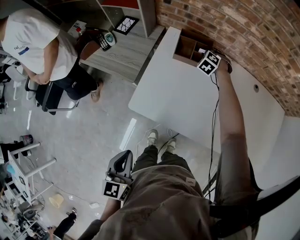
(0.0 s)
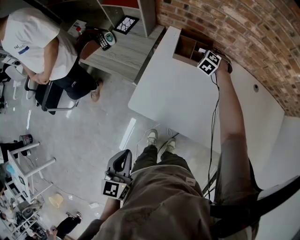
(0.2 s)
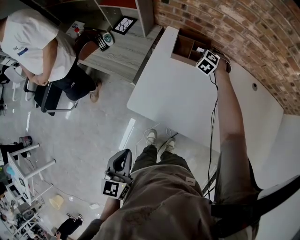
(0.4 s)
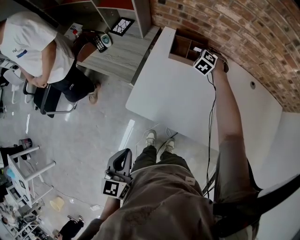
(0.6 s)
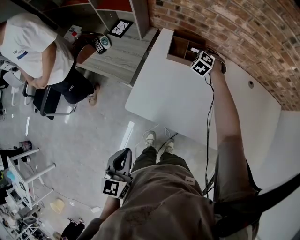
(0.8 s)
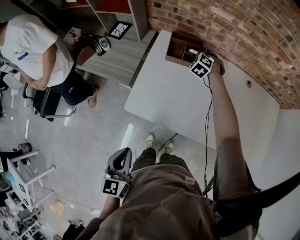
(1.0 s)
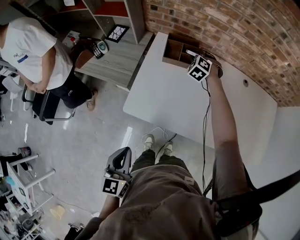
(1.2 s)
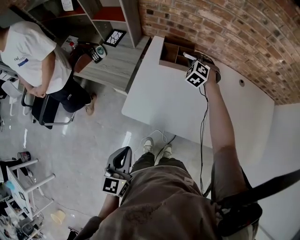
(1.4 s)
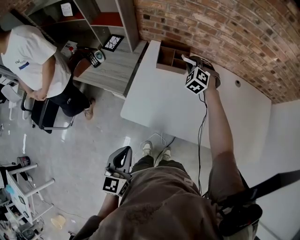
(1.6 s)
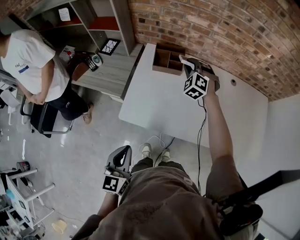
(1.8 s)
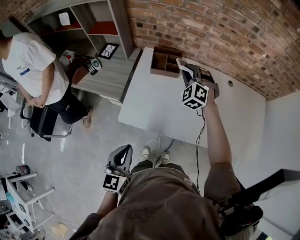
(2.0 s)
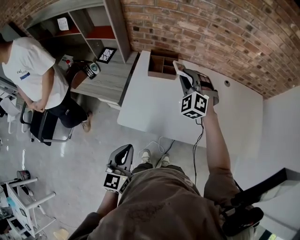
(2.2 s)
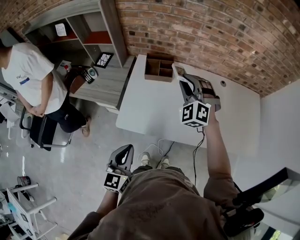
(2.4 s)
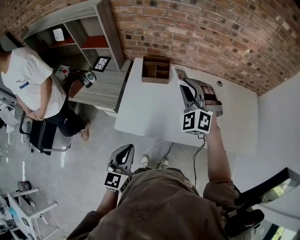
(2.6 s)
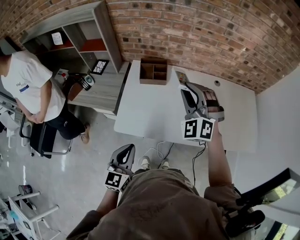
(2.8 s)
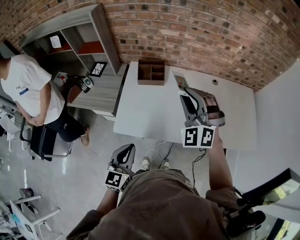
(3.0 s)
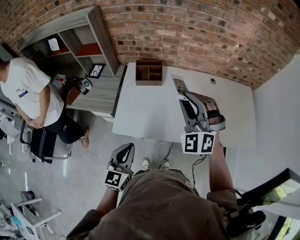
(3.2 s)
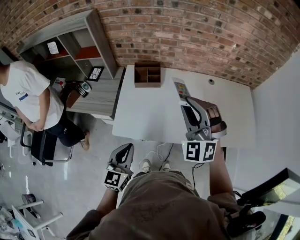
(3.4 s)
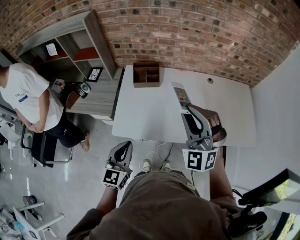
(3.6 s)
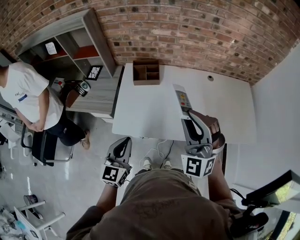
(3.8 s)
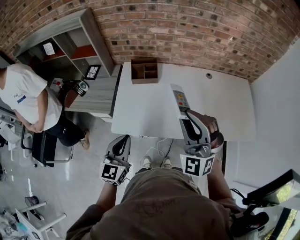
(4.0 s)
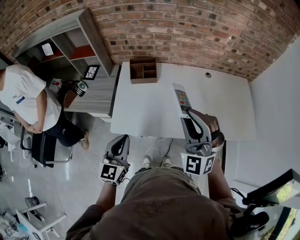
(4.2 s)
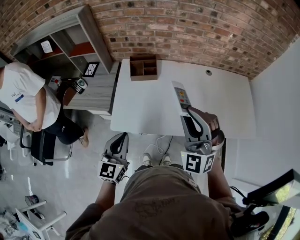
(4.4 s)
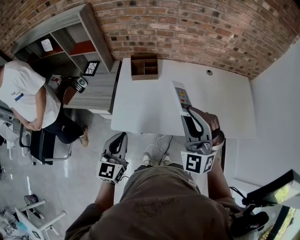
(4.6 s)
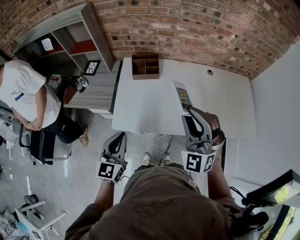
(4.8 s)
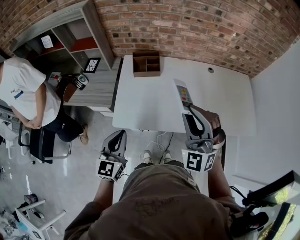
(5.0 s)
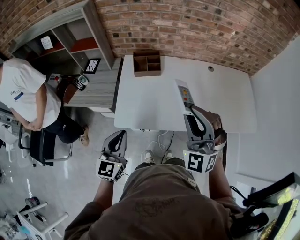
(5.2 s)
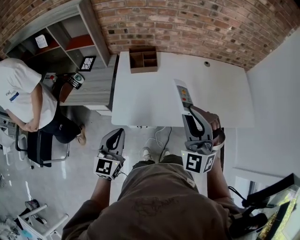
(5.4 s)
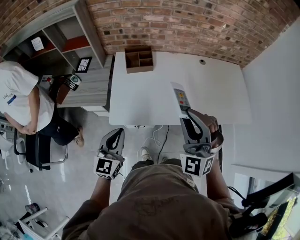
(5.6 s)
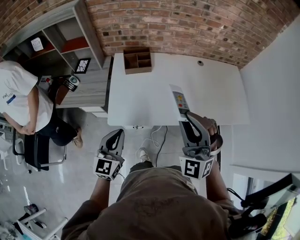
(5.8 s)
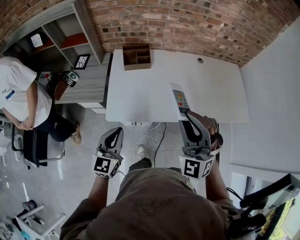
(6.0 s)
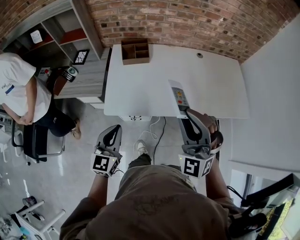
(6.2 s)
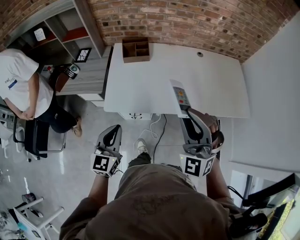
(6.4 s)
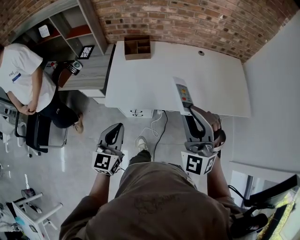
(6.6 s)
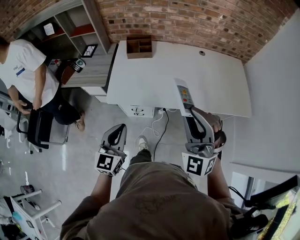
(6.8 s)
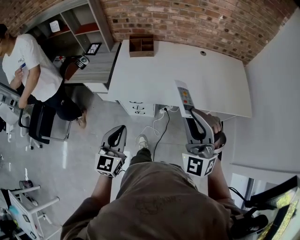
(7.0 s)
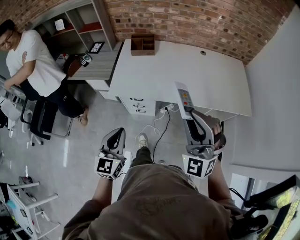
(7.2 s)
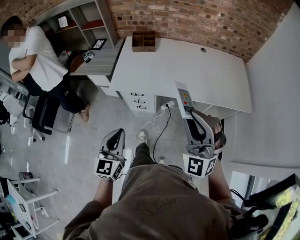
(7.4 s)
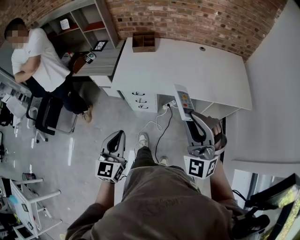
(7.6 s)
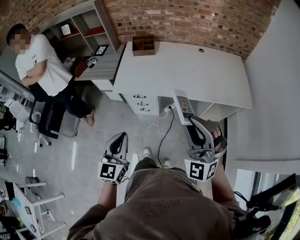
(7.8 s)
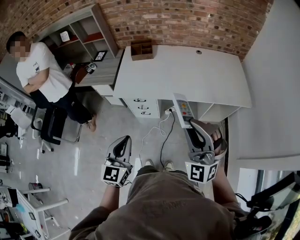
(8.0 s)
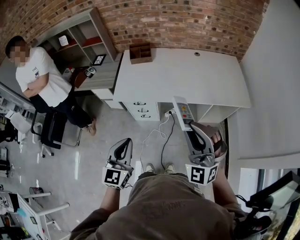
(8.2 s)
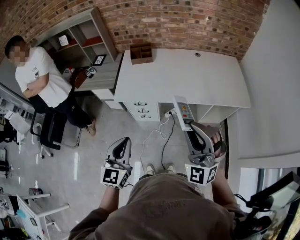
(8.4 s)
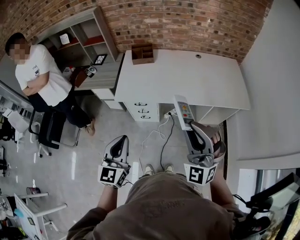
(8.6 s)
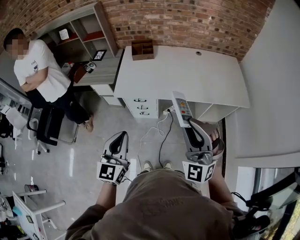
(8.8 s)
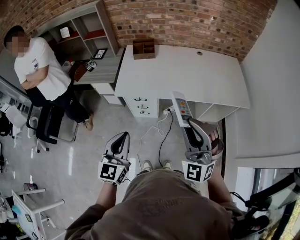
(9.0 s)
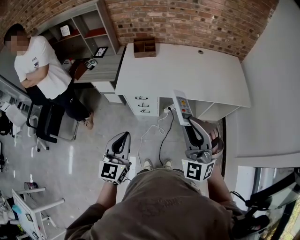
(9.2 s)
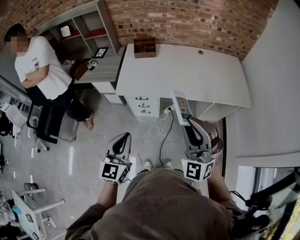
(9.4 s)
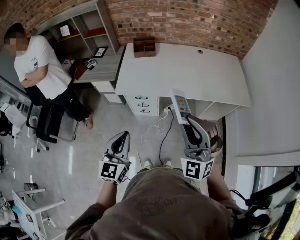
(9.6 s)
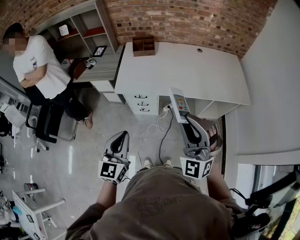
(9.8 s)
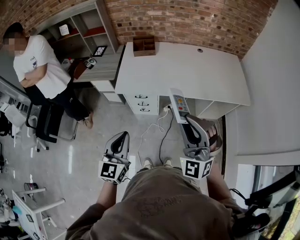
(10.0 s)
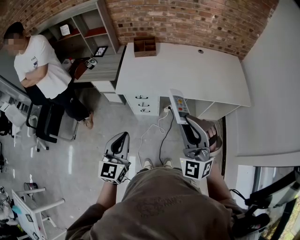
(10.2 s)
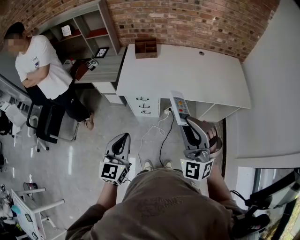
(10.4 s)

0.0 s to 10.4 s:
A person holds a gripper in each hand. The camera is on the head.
0.0 to 1.4 s: The right gripper is displaced upward and backward by about 10 cm.
1.4 to 3.0 s: The right gripper moves backward and upward, about 40 cm, and tips its fingers upward by approximately 30 degrees, while the left gripper moves to the right, approximately 5 cm, and rotates roughly 20 degrees.
3.0 to 4.4 s: The right gripper is displaced backward by some 10 cm.
4.4 to 6.0 s: The right gripper heads backward, covering roughly 10 cm. Meanwhile the left gripper shifts by some 5 cm.
6.0 to 7.4 s: The right gripper shifts about 25 cm backward and to the right, while the left gripper moves backward, about 25 cm.
7.4 to 9.0 s: The right gripper heads backward, covering about 5 cm. Meanwhile the left gripper shifts about 5 cm upward.
9.0 to 10.4 s: The grippers move only a little.

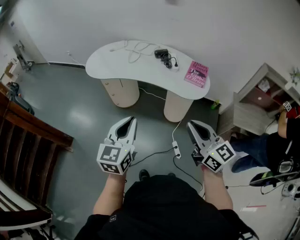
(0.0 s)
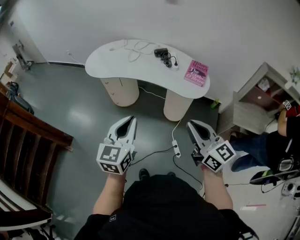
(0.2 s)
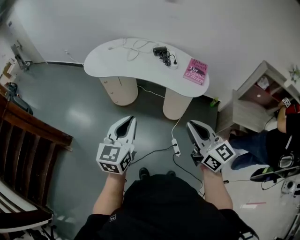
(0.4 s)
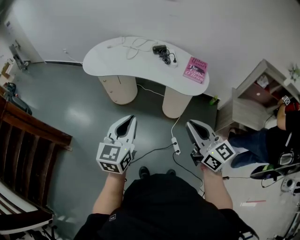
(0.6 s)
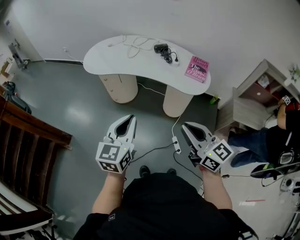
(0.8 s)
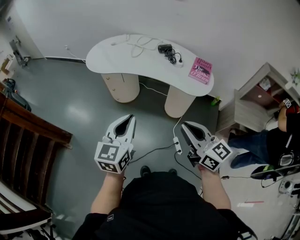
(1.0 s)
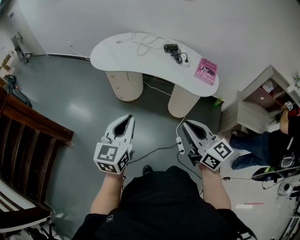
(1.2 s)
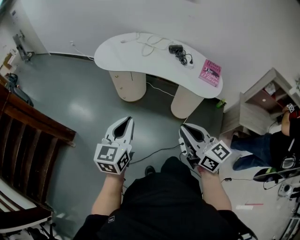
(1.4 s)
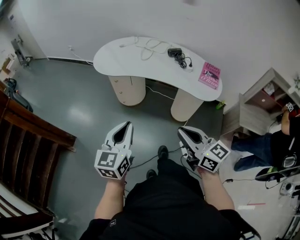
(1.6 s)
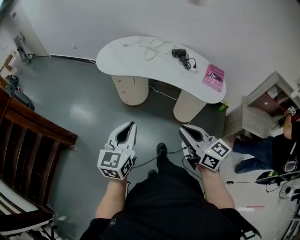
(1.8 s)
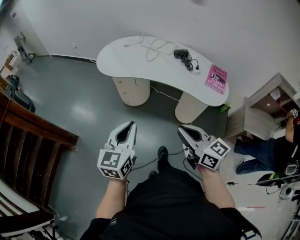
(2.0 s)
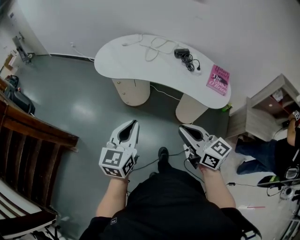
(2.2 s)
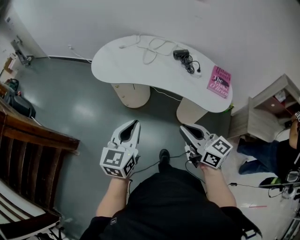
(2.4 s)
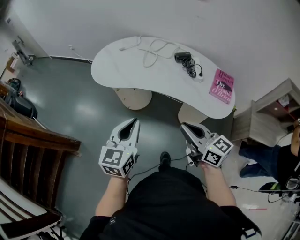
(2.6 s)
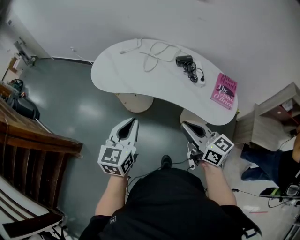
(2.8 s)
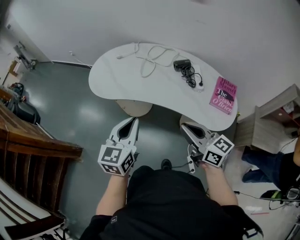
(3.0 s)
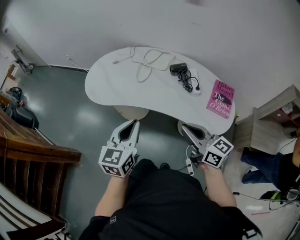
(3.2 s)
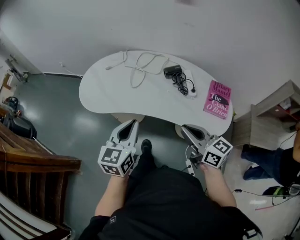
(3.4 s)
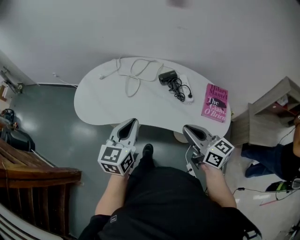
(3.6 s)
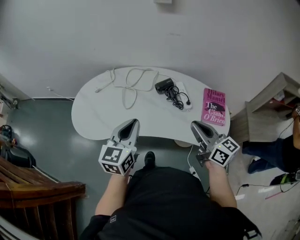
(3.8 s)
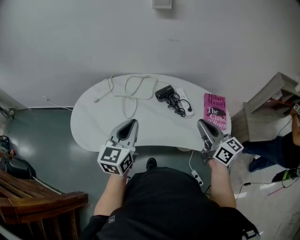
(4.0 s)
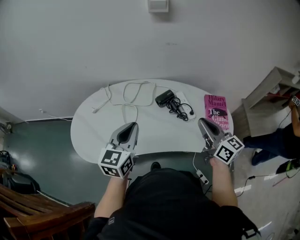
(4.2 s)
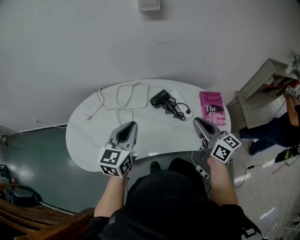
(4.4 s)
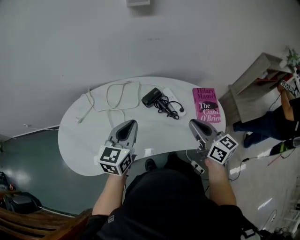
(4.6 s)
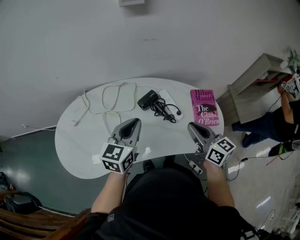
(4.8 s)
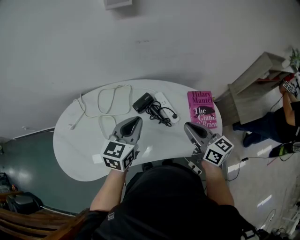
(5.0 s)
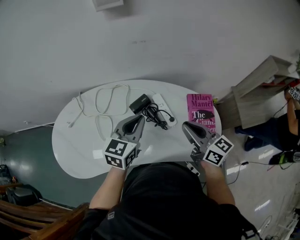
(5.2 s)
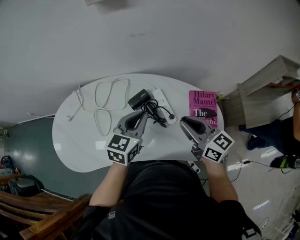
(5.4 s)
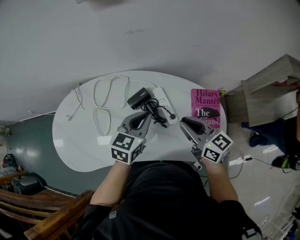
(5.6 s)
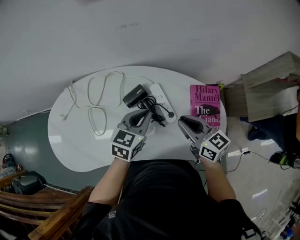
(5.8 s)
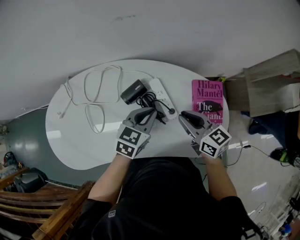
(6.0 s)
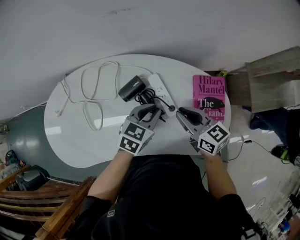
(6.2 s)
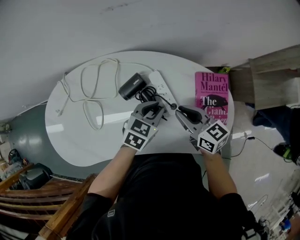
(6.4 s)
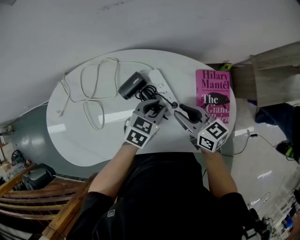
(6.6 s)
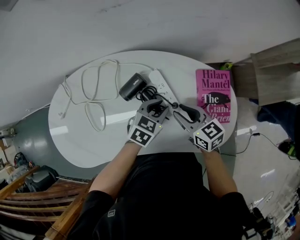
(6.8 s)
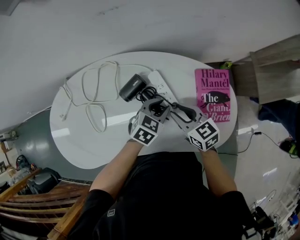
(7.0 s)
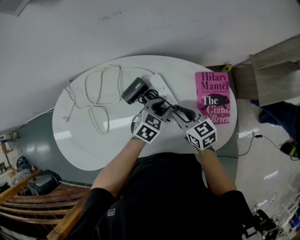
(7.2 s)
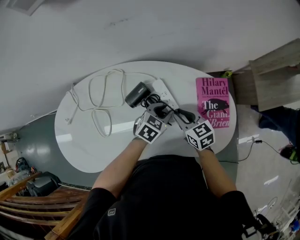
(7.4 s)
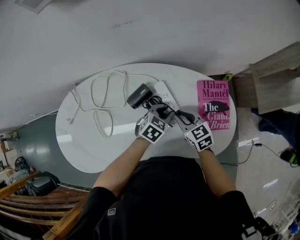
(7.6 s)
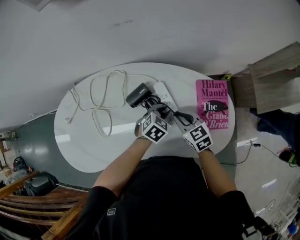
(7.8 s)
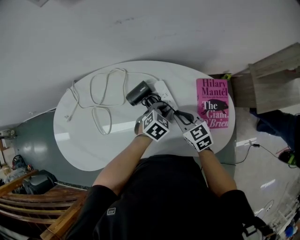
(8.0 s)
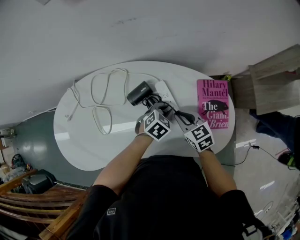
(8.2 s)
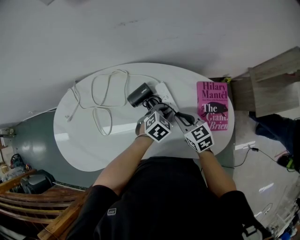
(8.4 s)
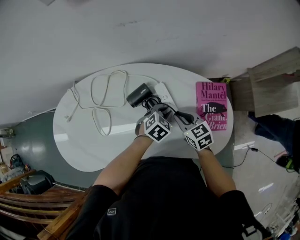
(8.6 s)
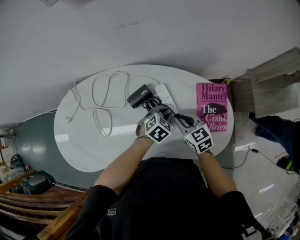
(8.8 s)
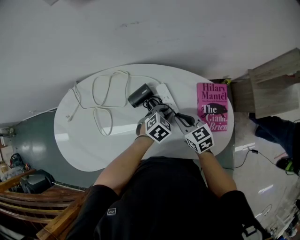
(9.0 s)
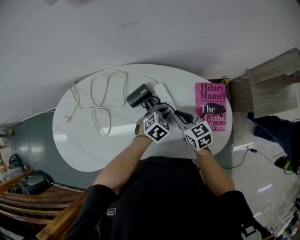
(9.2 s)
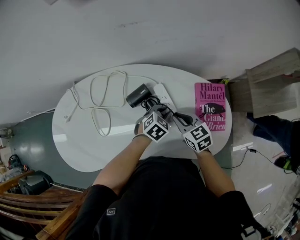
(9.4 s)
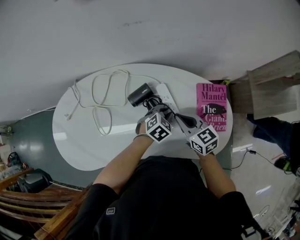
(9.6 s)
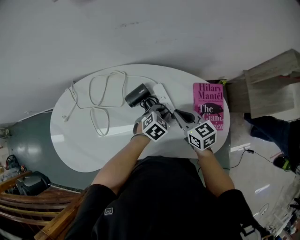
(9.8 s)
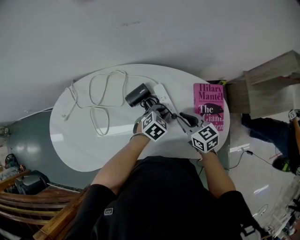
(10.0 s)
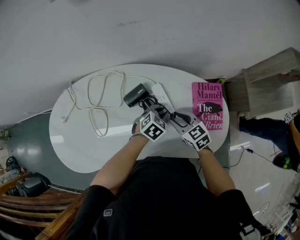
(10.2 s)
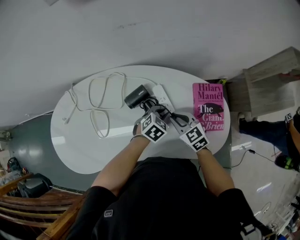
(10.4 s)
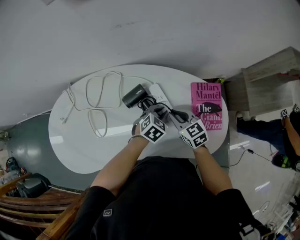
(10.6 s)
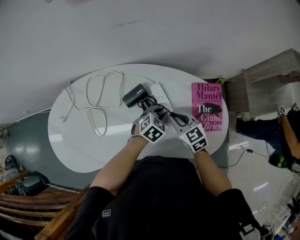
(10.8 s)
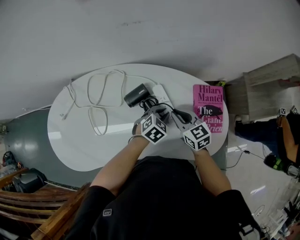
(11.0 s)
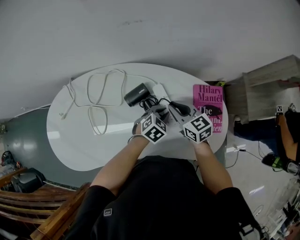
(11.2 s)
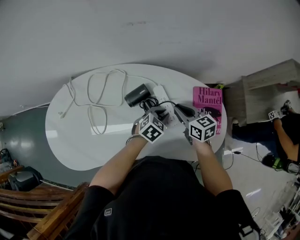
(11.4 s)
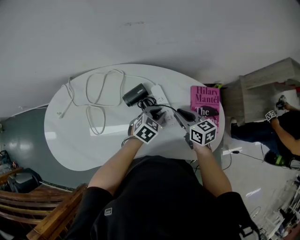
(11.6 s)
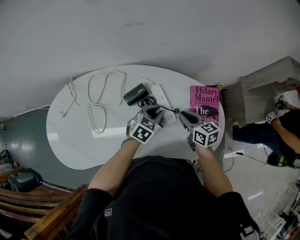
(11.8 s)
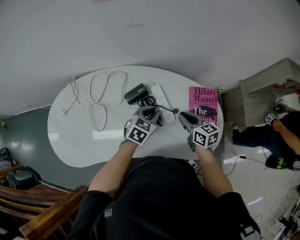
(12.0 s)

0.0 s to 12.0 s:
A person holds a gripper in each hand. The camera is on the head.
0.0 to 1.6 s: Both grippers travel together to the left, roughly 15 cm.
1.6 to 3.0 s: Both grippers move forward and to the right, roughly 30 cm.
3.0 to 4.4 s: The right gripper ends up about 25 cm from where it was, and swivels about 40 degrees; the left gripper changes place by roughly 30 cm, and changes its angle by about 30 degrees.
4.4 to 6.0 s: The left gripper moves to the right, downward and forward, approximately 30 cm, and swivels approximately 30 degrees; the right gripper is displaced downward, forward and to the right by roughly 20 cm.
6.0 to 7.6 s: Both grippers move downward, about 10 cm. The left gripper swivels approximately 20 degrees.
7.6 to 10.4 s: The grippers make only small movements.
10.4 to 12.0 s: The right gripper travels to the right by about 5 cm, and swivels about 30 degrees. The left gripper heads upward, covering some 5 cm.

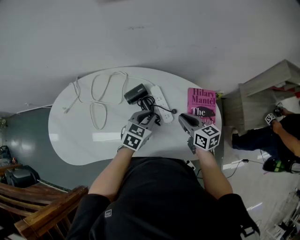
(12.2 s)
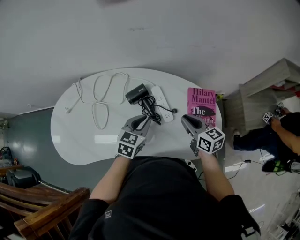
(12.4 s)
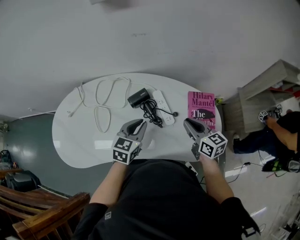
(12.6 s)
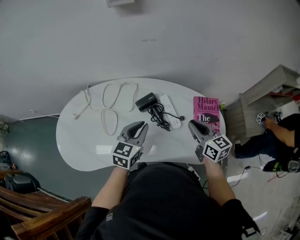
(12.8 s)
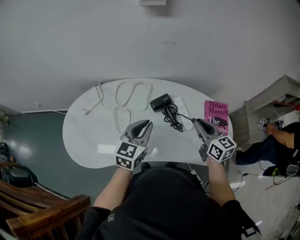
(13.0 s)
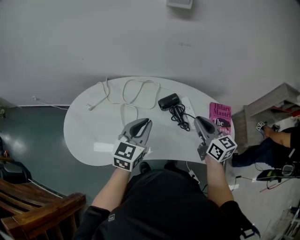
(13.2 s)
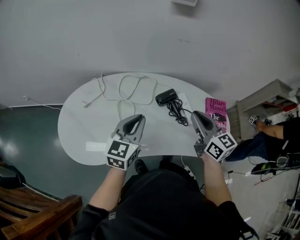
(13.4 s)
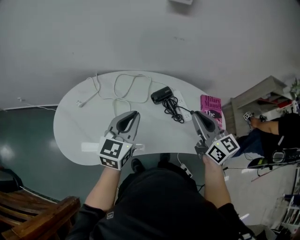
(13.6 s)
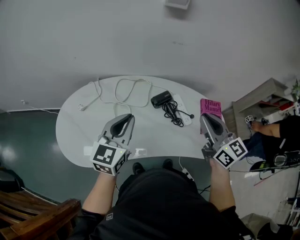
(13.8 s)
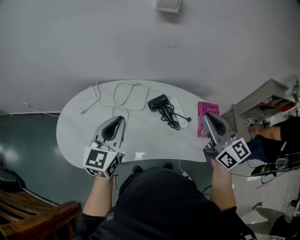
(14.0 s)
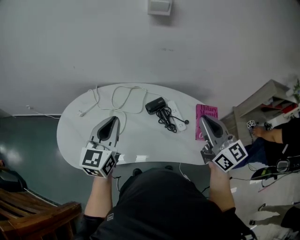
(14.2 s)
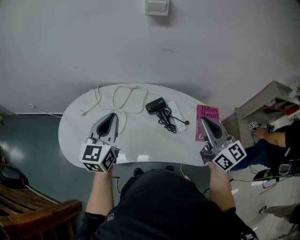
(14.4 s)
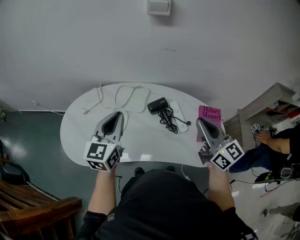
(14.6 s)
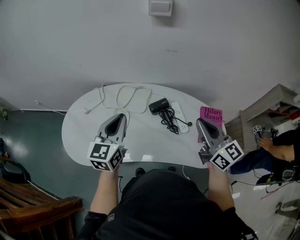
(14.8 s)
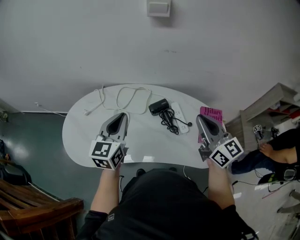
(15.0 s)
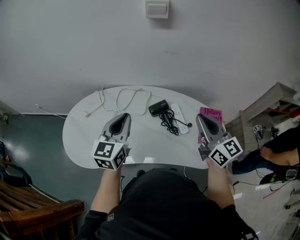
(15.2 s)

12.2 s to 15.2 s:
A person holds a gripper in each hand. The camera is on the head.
12.2 to 13.8 s: The left gripper moves to the left and upward, roughly 35 cm, and tips its fingers upward by approximately 30 degrees; the right gripper goes some 30 cm upward and to the left, and changes its angle by approximately 30 degrees.
13.8 to 15.2 s: The right gripper travels to the right by about 5 cm.
